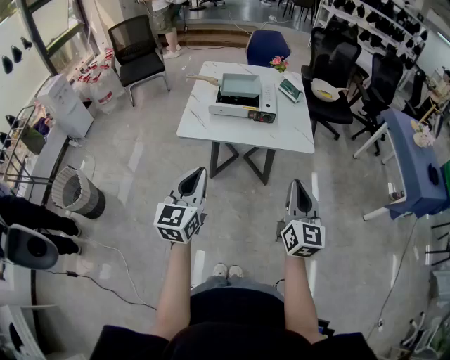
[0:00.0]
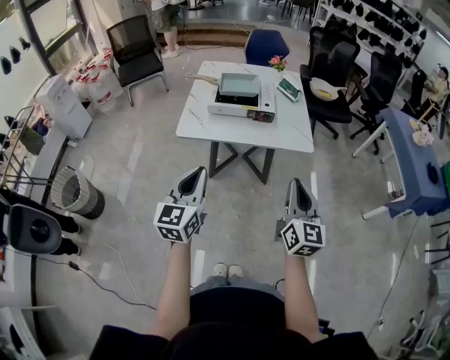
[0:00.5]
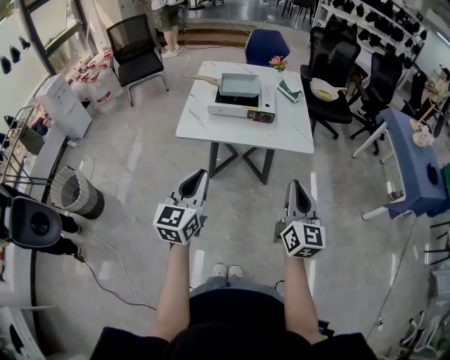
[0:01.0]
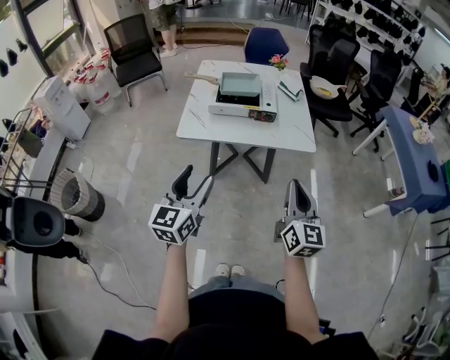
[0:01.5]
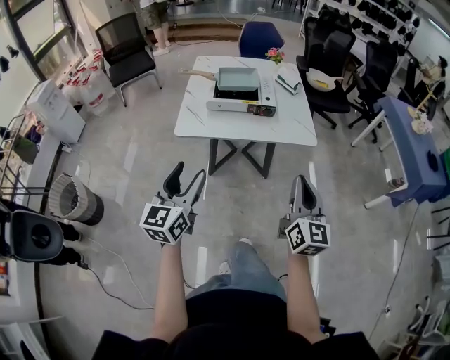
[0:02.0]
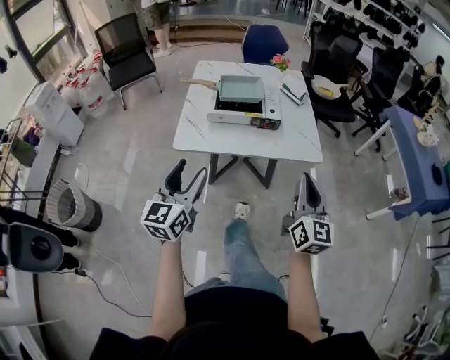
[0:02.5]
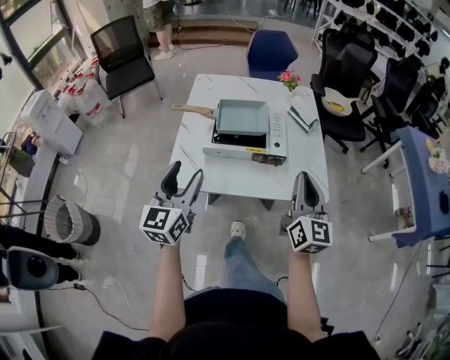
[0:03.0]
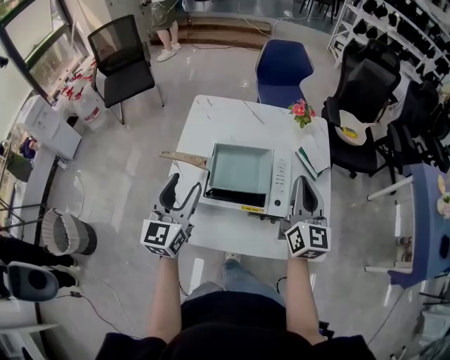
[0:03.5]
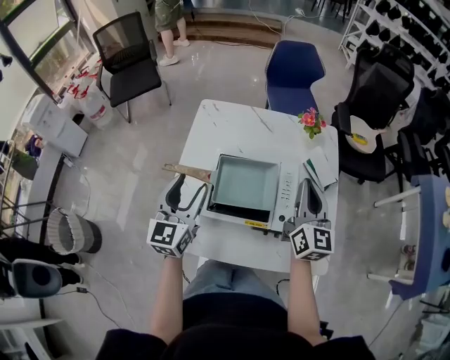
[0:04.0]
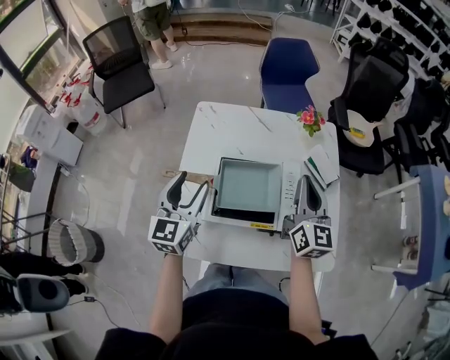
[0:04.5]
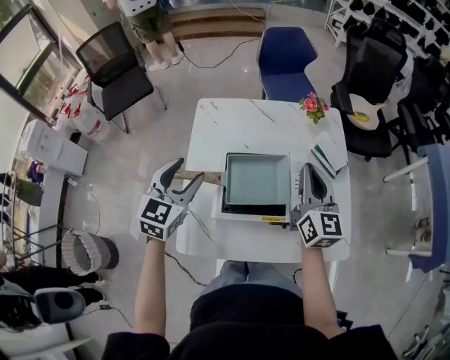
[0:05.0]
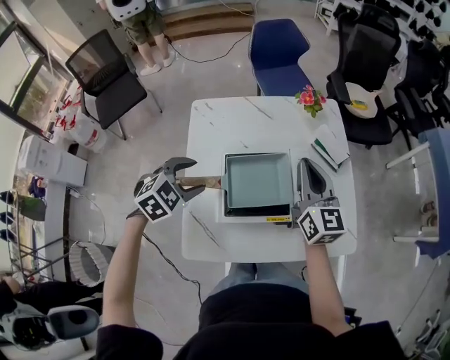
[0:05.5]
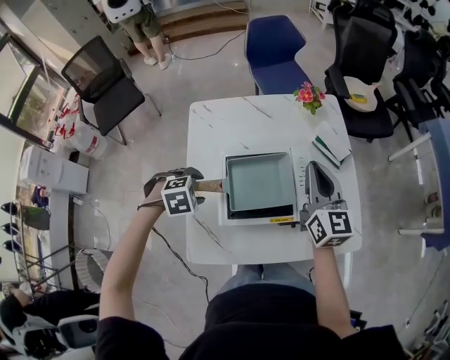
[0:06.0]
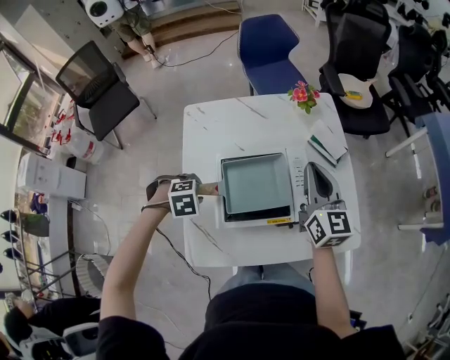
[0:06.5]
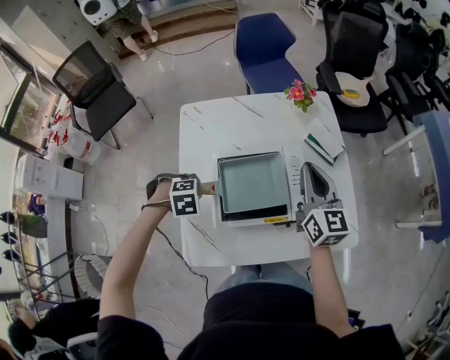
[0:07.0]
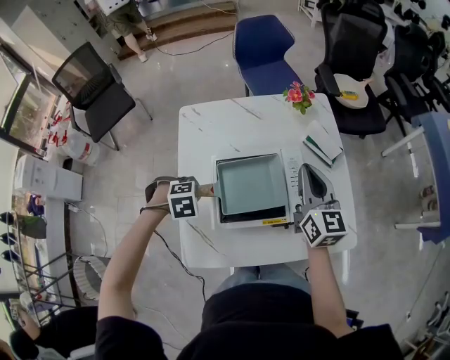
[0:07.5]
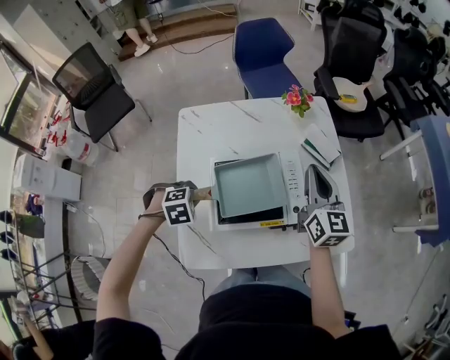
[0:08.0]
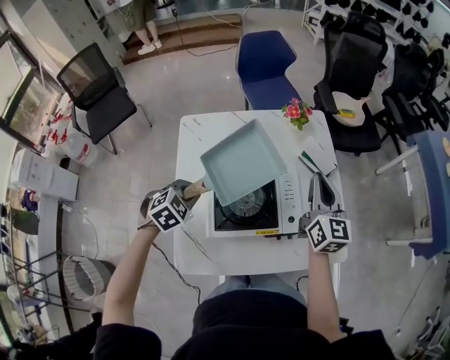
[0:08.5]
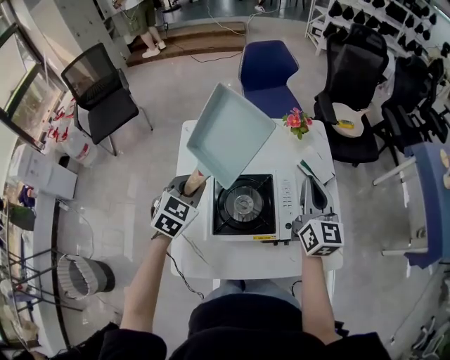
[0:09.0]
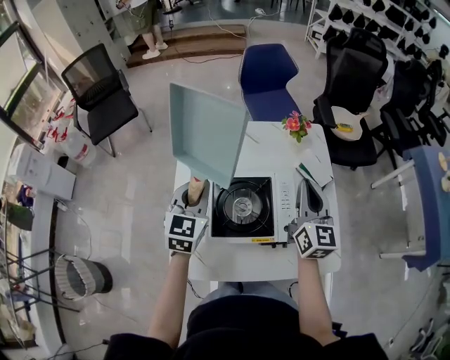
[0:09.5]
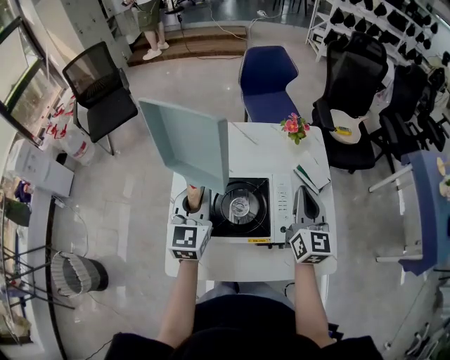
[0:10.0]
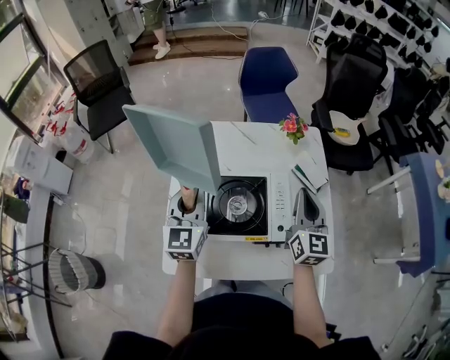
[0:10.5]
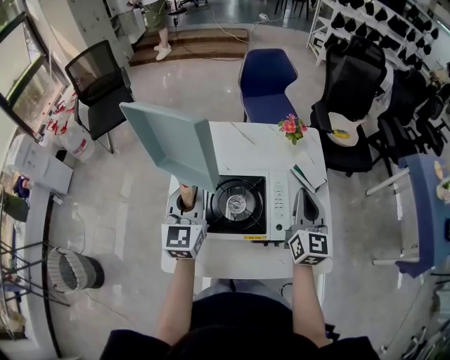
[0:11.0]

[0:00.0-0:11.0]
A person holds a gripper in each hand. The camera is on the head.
0:00.0 to 0:02.0: The left gripper heads to the left, covering about 5 cm, and opens.
0:02.0 to 0:03.5: Both grippers are carried forward, about 50 cm.
0:03.5 to 0:05.5: The left gripper moves forward and downward, approximately 15 cm, and tilts its fingers about 50 degrees downward, while the right gripper heads forward and to the left, covering roughly 10 cm.
0:05.5 to 0:07.5: The left gripper shifts approximately 10 cm downward, tips its fingers downward by about 30 degrees, and closes its fingers.
0:07.5 to 0:09.0: The left gripper travels upward by roughly 15 cm, and points its fingers some 50 degrees further upward.
0:09.0 to 0:11.0: The left gripper travels upward by about 5 cm, and angles its fingers upward, by some 30 degrees.

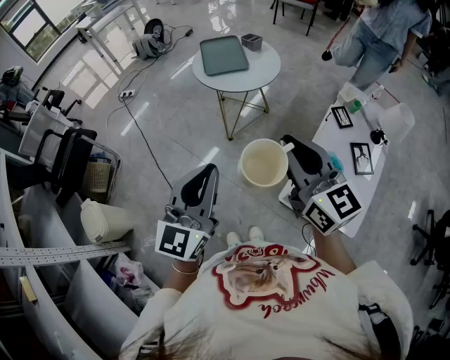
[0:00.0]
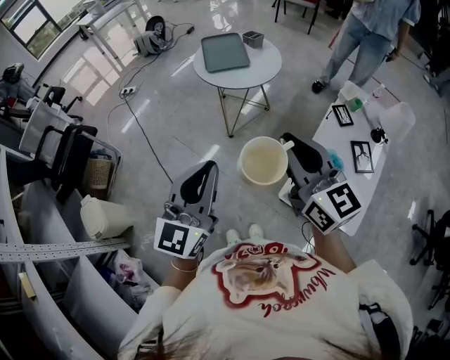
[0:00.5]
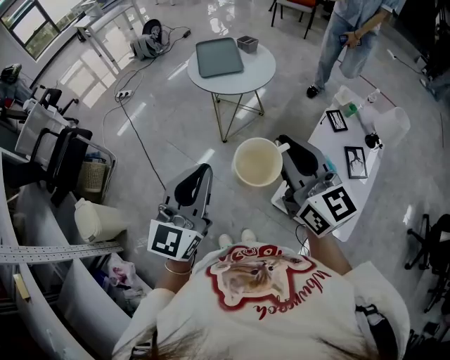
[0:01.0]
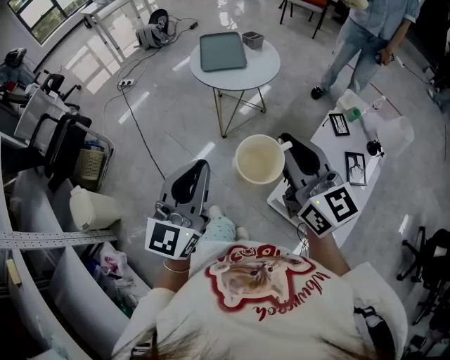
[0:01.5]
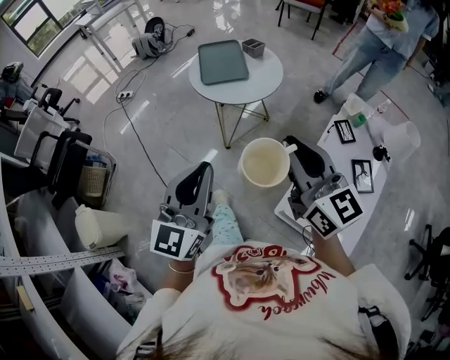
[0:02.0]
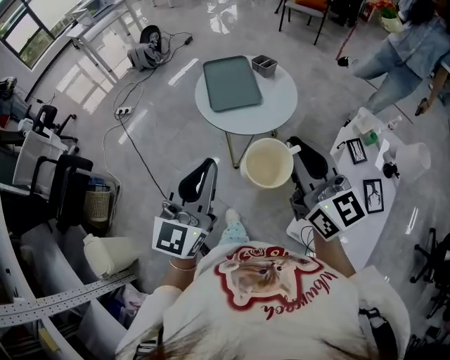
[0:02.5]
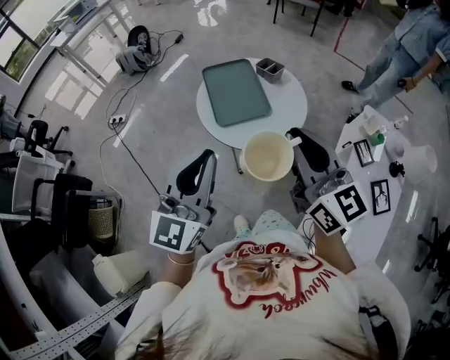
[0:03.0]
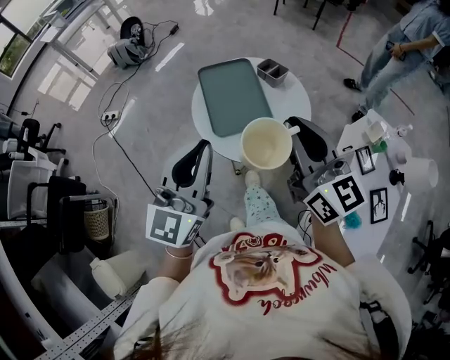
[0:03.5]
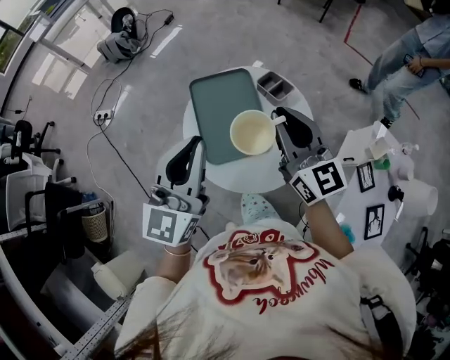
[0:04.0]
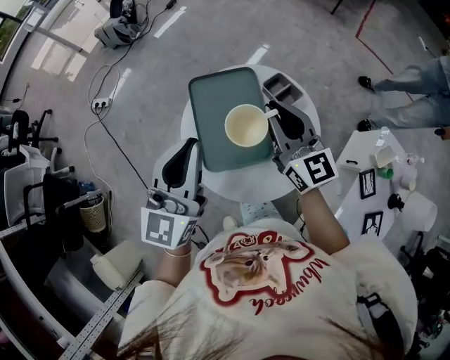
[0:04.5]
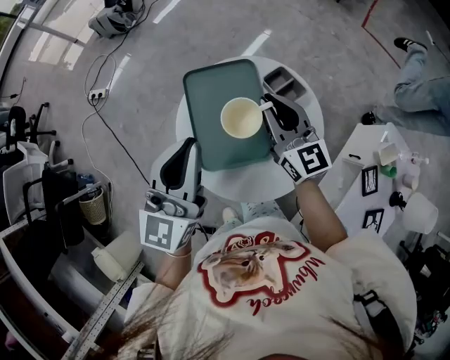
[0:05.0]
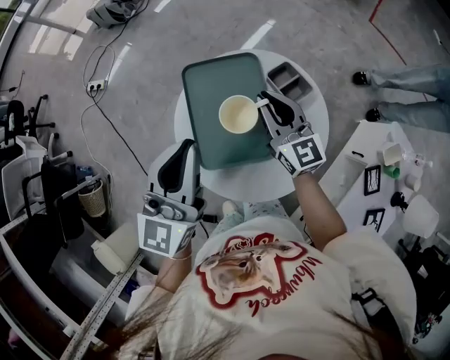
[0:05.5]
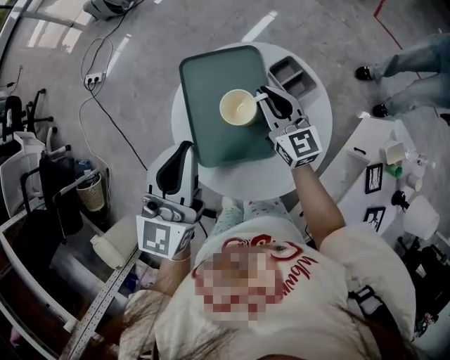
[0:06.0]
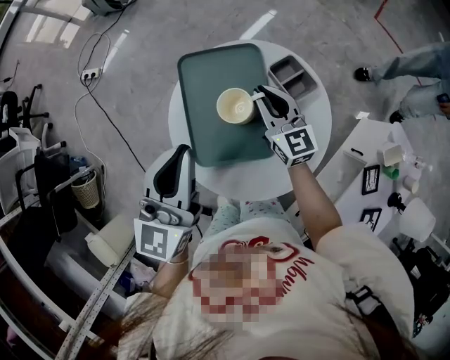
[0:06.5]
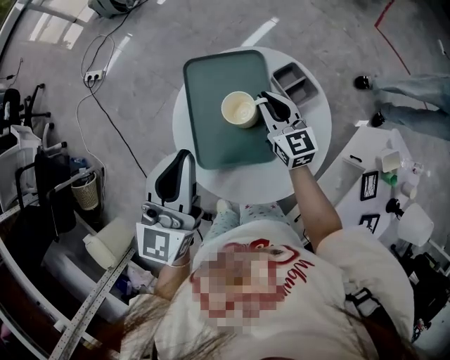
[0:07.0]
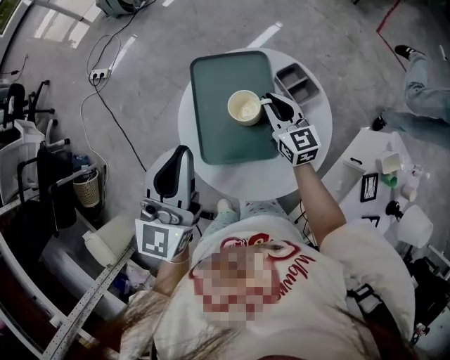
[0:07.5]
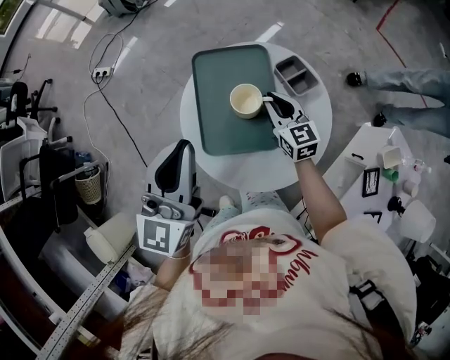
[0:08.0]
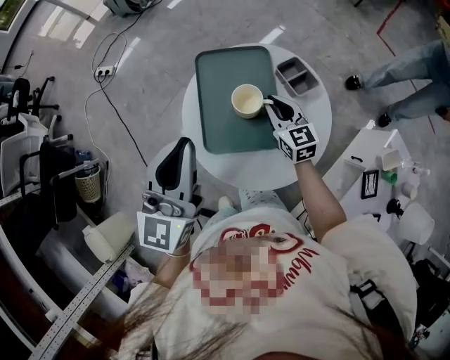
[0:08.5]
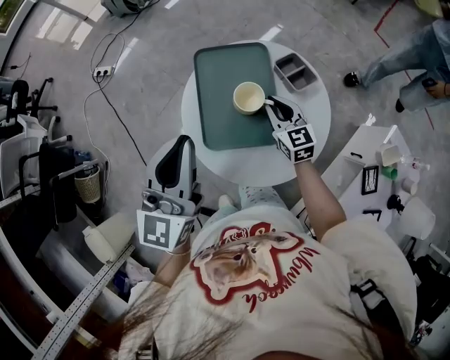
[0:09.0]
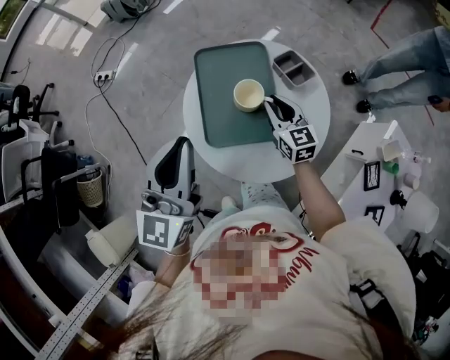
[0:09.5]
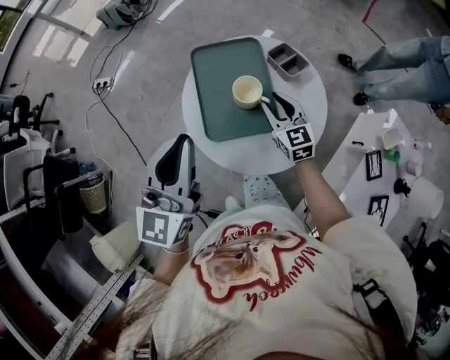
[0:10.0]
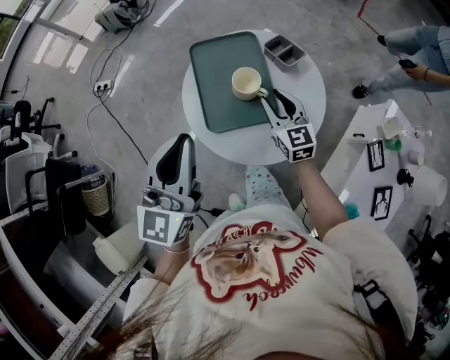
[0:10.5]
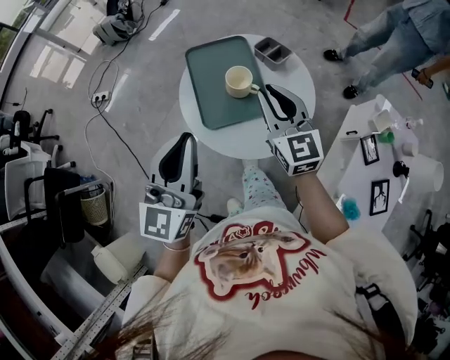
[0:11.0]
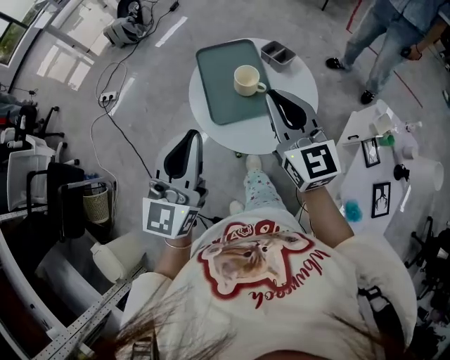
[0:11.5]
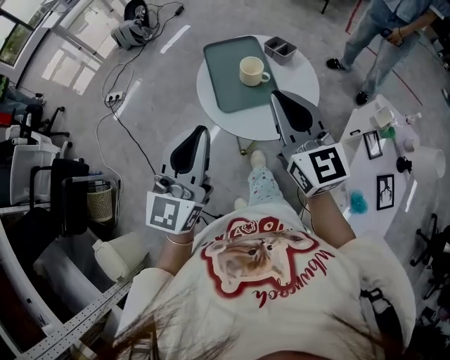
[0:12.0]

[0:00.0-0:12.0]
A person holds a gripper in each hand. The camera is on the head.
0:00.0 to 0:02.0: Both grippers travel together forward, some 10 cm.
0:02.0 to 0:04.0: The pair of grippers is taken forward, approximately 50 cm.
0:04.0 to 0:06.0: The left gripper goes some 10 cm downward and forward. The right gripper heads downward and forward, covering some 25 cm.
0:06.0 to 0:08.0: The right gripper shifts by about 5 cm. Meanwhile the left gripper moves approximately 5 cm.
0:08.0 to 0:10.0: The right gripper shifts some 5 cm backward. The left gripper shifts by approximately 5 cm.
0:10.0 to 0:12.0: The right gripper heads upward and backward, covering about 35 cm, swivels approximately 20 degrees, and closes. The left gripper goes approximately 15 cm backward.

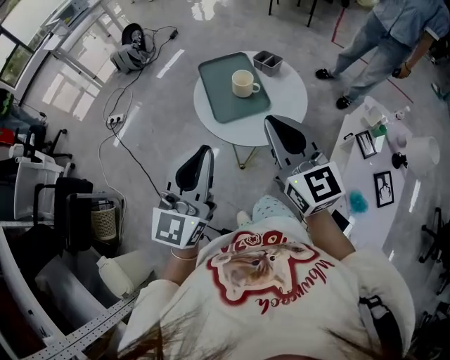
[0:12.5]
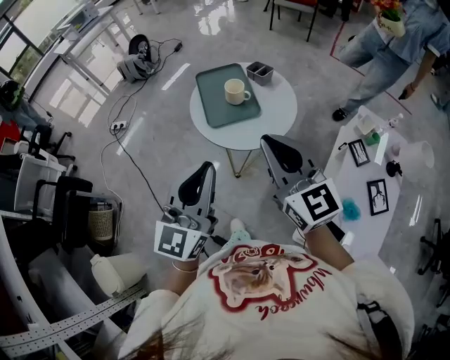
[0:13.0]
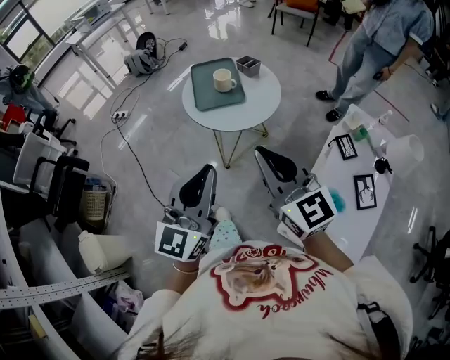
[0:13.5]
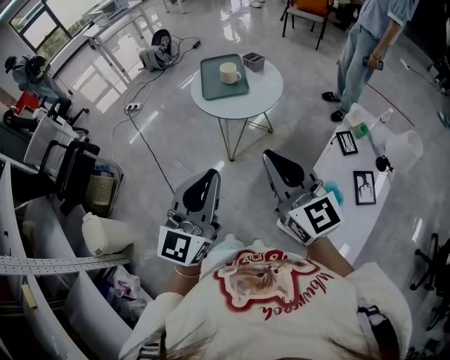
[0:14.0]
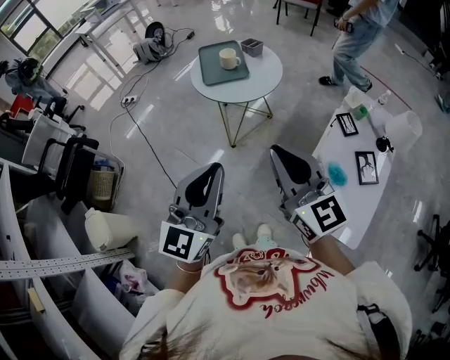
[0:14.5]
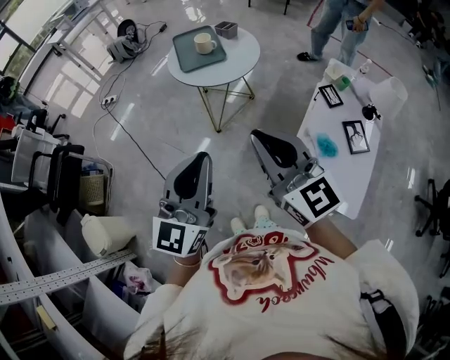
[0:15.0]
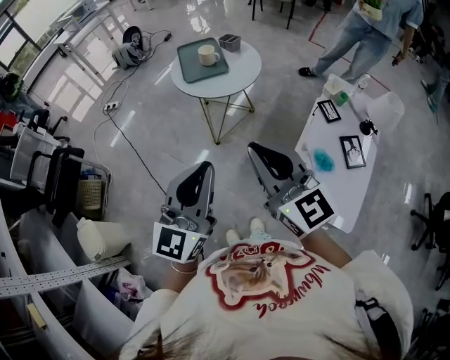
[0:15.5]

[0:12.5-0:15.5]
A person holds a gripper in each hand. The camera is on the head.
0:12.5 to 0:14.0: The two grippers go approximately 35 cm backward and to the right.
0:14.0 to 0:15.5: The two grippers go roughly 5 cm backward.

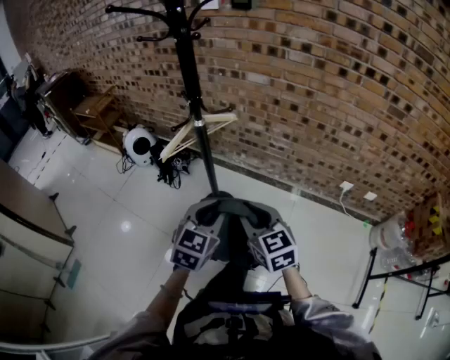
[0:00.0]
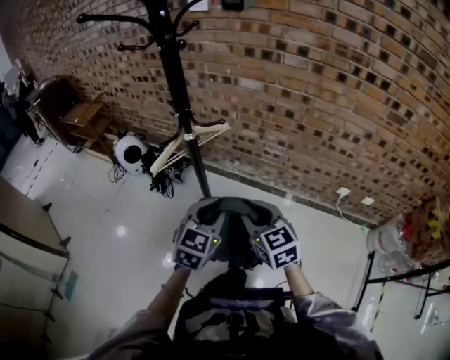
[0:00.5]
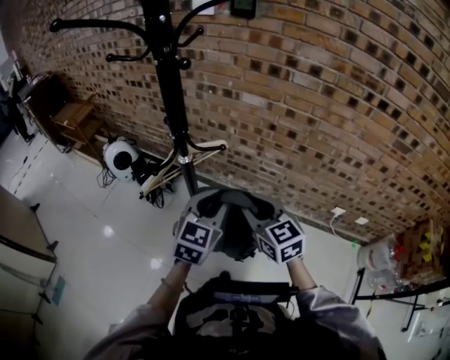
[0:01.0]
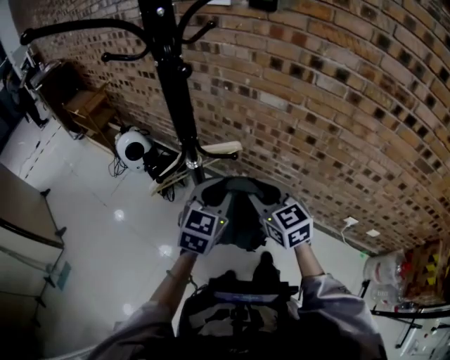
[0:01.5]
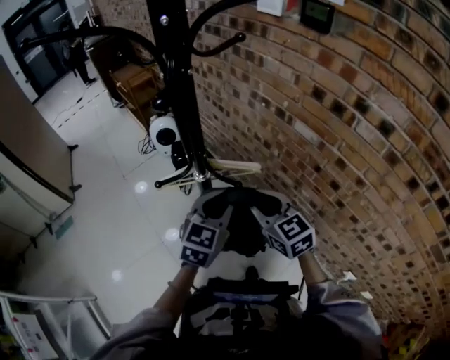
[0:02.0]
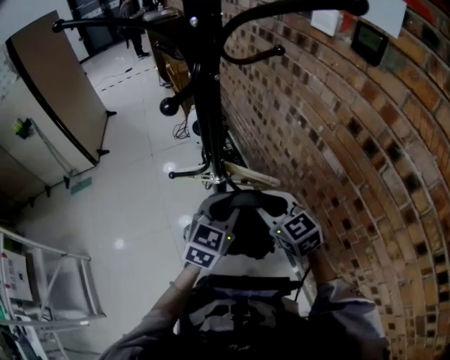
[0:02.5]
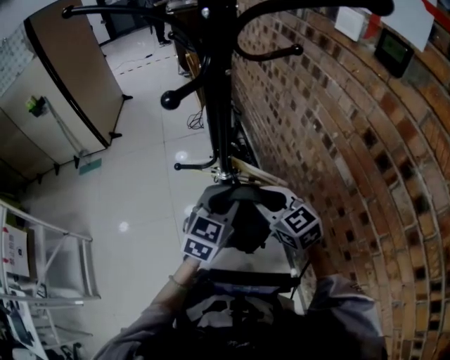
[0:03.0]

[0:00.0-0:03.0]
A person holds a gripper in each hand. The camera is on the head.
0:00.0 to 0:01.5: The two grippers go roughly 30 cm forward.
0:01.5 to 0:03.0: The right gripper shifts by roughly 10 cm, and swivels roughly 50 degrees, while the left gripper shifts by roughly 10 cm, and turns by about 40 degrees.
